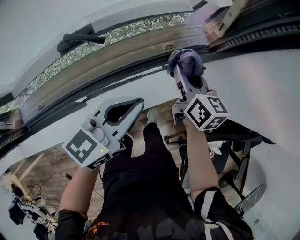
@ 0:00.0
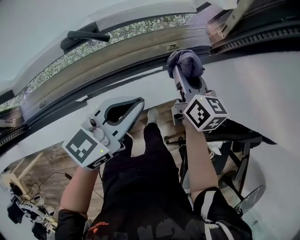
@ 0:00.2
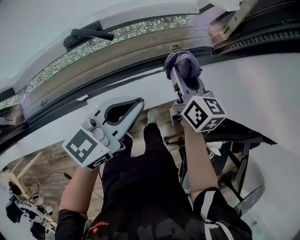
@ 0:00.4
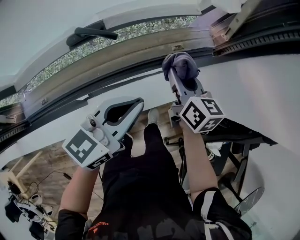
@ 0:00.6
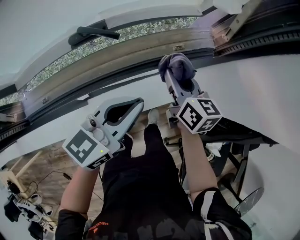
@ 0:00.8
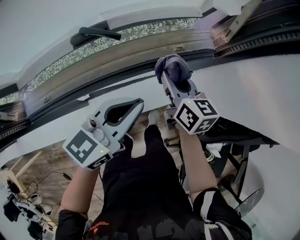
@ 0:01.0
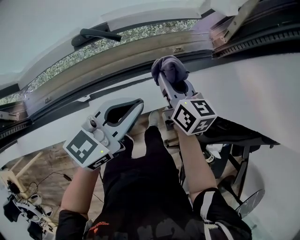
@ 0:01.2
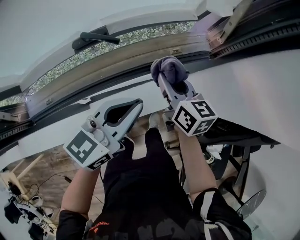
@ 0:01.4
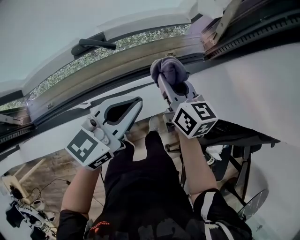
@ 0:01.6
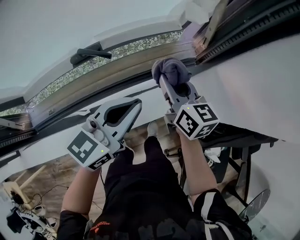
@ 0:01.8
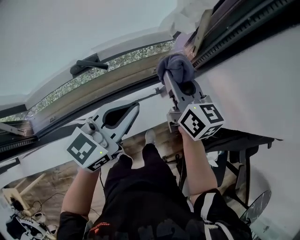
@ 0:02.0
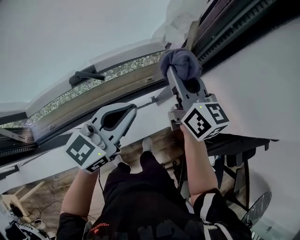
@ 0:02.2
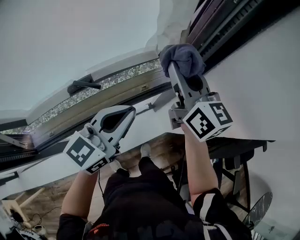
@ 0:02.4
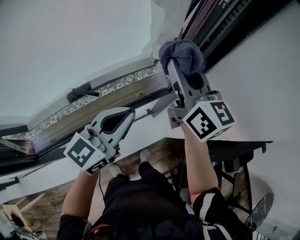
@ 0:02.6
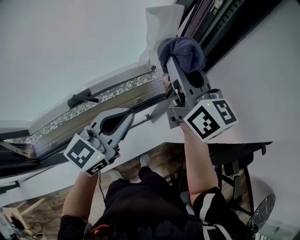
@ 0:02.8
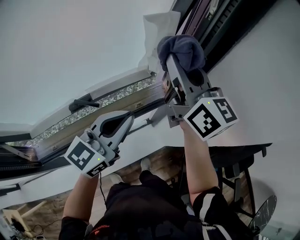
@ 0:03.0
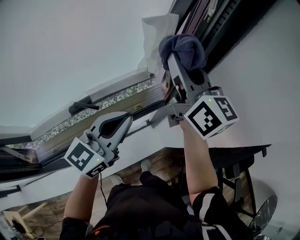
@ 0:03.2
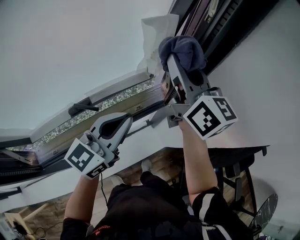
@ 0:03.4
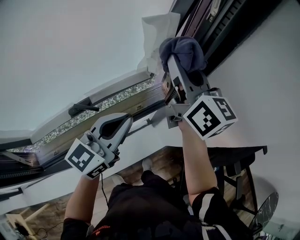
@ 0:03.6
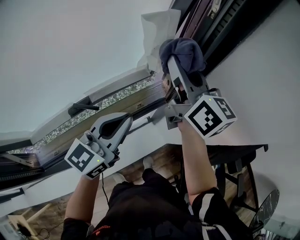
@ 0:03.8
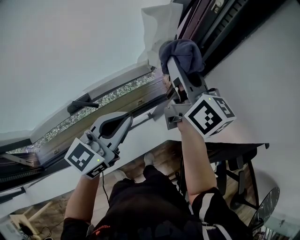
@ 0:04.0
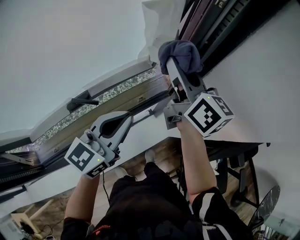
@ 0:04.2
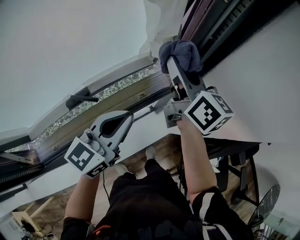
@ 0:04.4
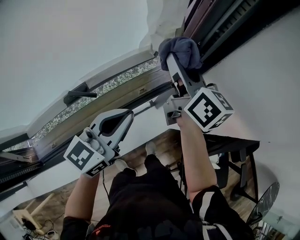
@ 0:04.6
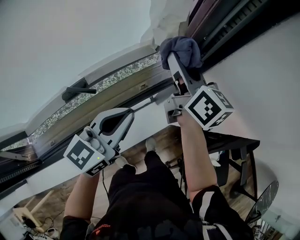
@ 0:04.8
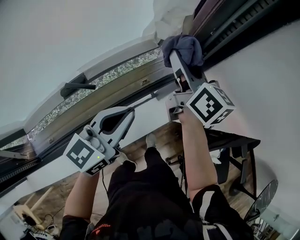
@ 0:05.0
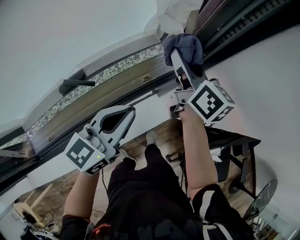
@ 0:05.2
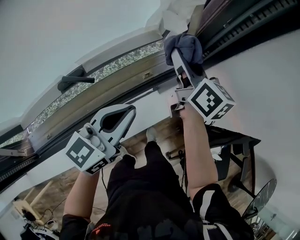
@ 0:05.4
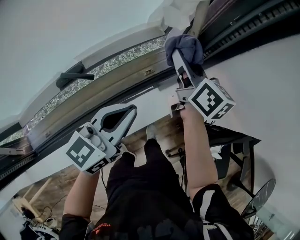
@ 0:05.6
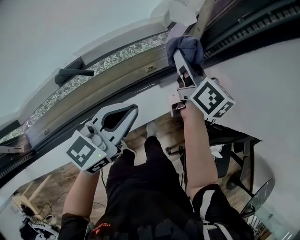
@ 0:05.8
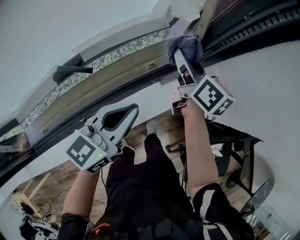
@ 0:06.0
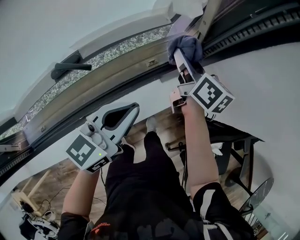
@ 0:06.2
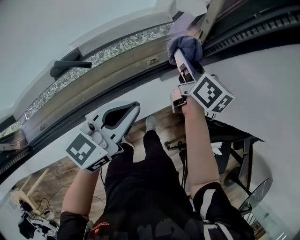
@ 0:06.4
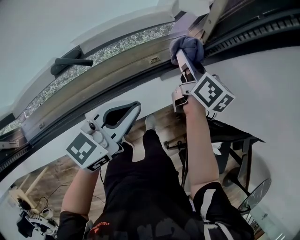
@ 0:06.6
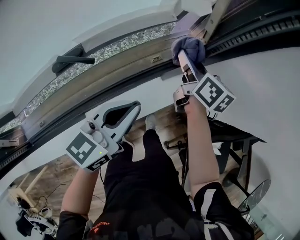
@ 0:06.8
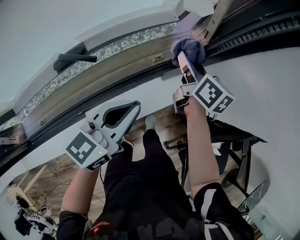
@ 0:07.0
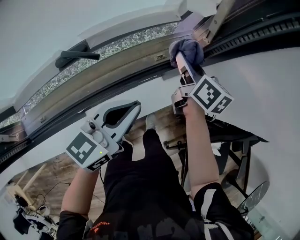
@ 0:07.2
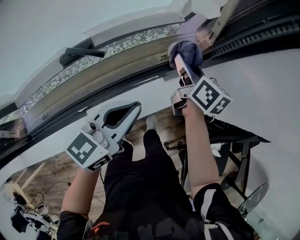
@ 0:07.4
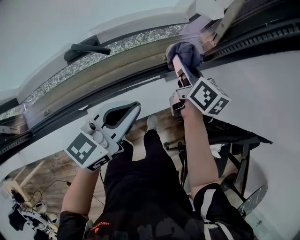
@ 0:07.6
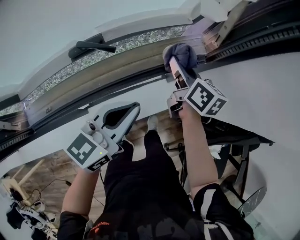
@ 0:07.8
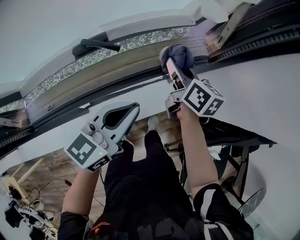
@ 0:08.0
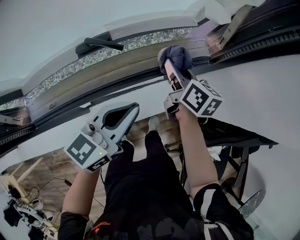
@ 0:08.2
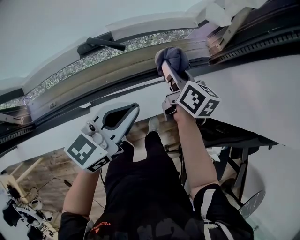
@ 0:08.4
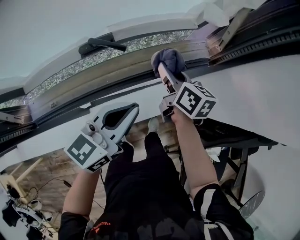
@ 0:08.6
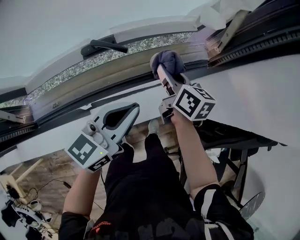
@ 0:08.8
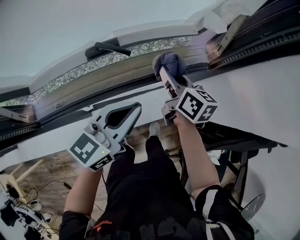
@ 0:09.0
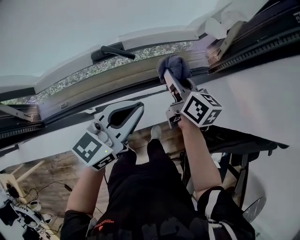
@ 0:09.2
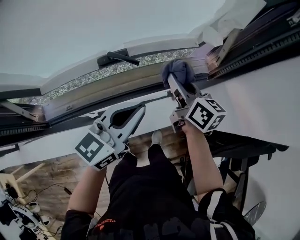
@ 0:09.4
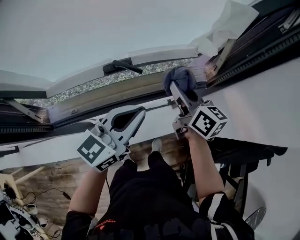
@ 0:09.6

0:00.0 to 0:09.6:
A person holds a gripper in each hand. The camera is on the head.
0:00.0 to 0:01.6: The right gripper moves to the left, about 5 cm.
0:01.6 to 0:03.2: The right gripper goes approximately 30 cm upward, and rotates about 30 degrees. Meanwhile the left gripper travels upward and forward by some 15 cm.
0:03.2 to 0:04.8: The left gripper travels downward by approximately 10 cm; the right gripper travels downward by some 15 cm, and rotates approximately 20 degrees.
0:04.8 to 0:06.4: The left gripper travels downward by some 10 cm; the right gripper travels downward by roughly 20 cm.
0:06.4 to 0:08.0: The right gripper heads to the left and backward, covering roughly 10 cm. The left gripper shifts about 10 cm backward and to the left.
0:08.0 to 0:09.6: The right gripper travels upward and to the left by about 15 cm; the left gripper shifts some 10 cm upward.

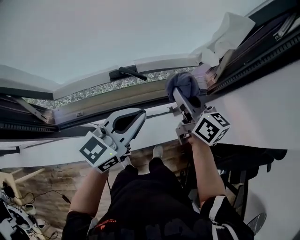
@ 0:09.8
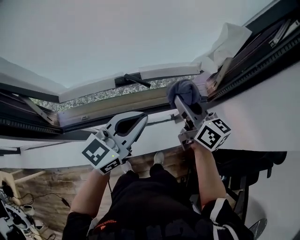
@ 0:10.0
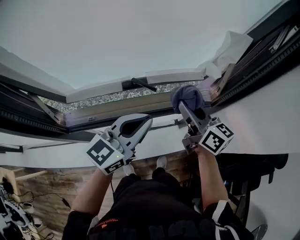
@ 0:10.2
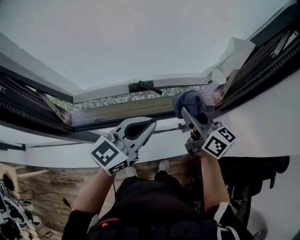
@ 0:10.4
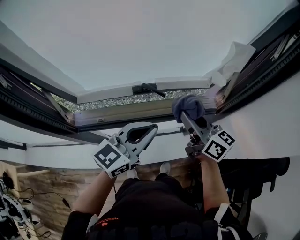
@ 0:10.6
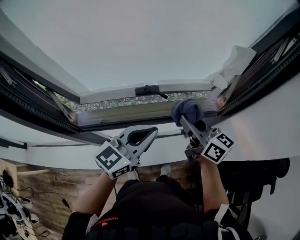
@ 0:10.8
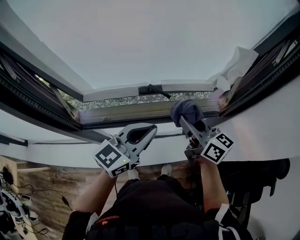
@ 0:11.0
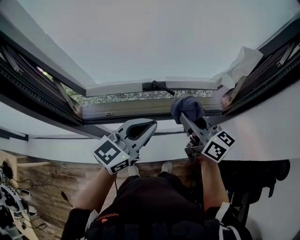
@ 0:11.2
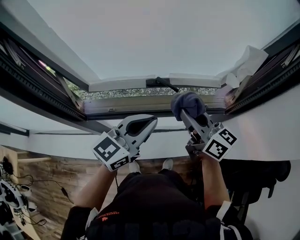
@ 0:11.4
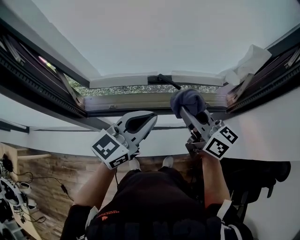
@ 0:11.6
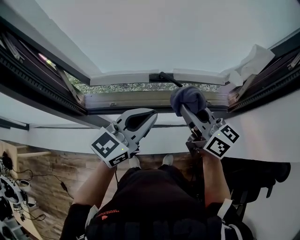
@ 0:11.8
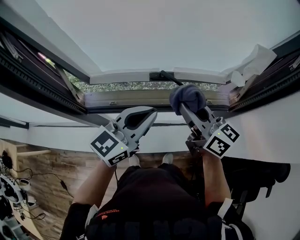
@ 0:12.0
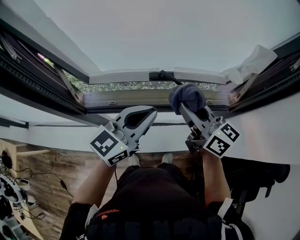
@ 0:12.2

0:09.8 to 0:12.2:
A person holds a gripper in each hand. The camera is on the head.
0:09.8 to 0:11.0: The left gripper ends up approximately 5 cm from where it was; the right gripper is displaced backward, to the left and upward by some 10 cm.
0:11.0 to 0:12.2: The right gripper travels to the left by approximately 5 cm.

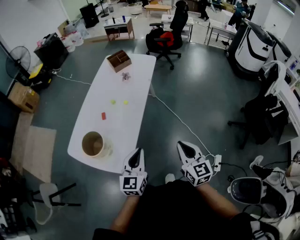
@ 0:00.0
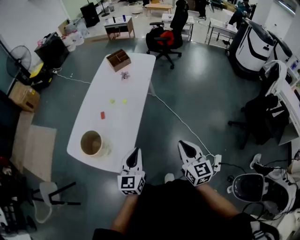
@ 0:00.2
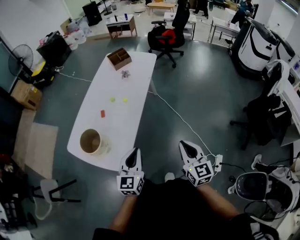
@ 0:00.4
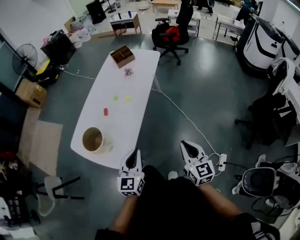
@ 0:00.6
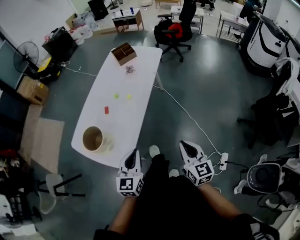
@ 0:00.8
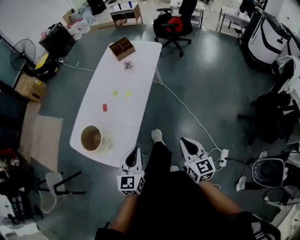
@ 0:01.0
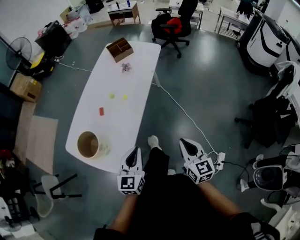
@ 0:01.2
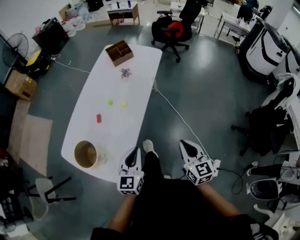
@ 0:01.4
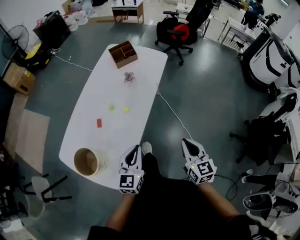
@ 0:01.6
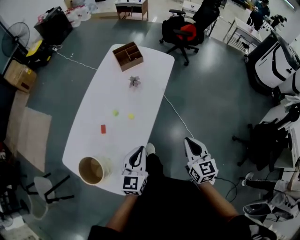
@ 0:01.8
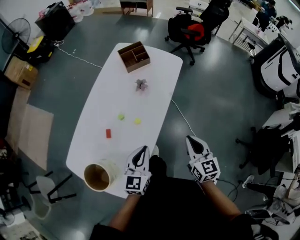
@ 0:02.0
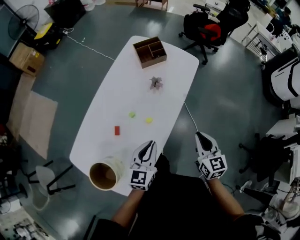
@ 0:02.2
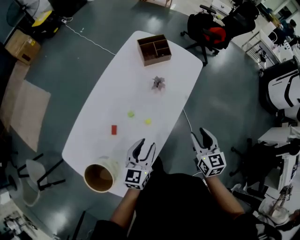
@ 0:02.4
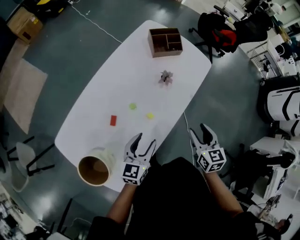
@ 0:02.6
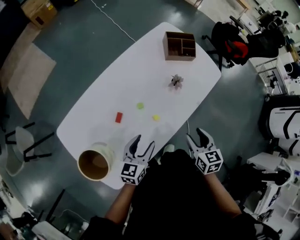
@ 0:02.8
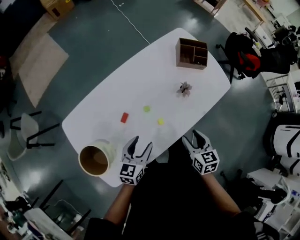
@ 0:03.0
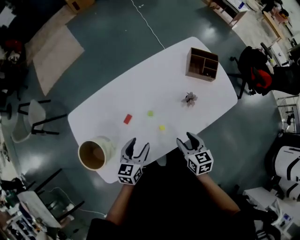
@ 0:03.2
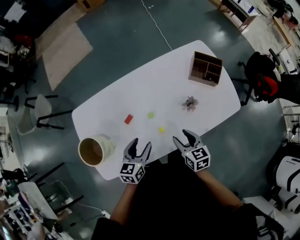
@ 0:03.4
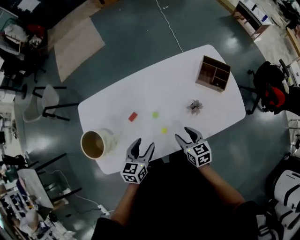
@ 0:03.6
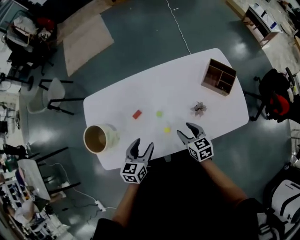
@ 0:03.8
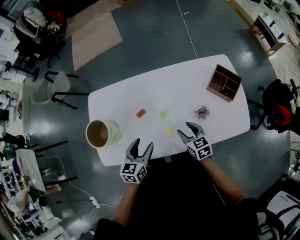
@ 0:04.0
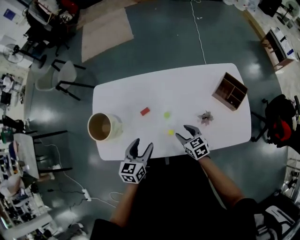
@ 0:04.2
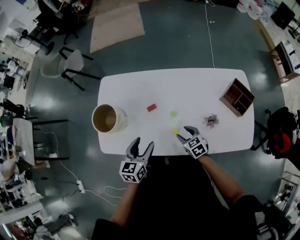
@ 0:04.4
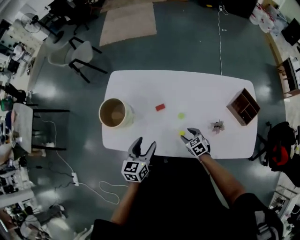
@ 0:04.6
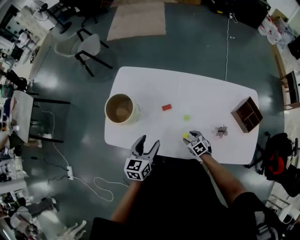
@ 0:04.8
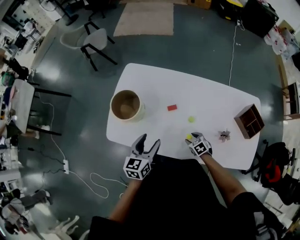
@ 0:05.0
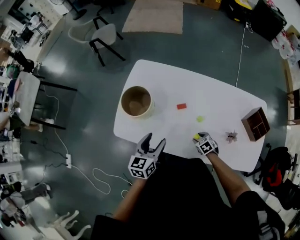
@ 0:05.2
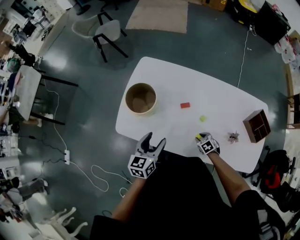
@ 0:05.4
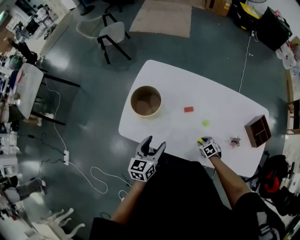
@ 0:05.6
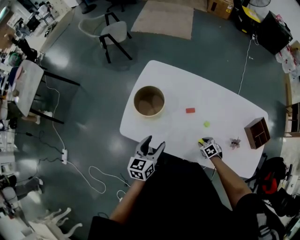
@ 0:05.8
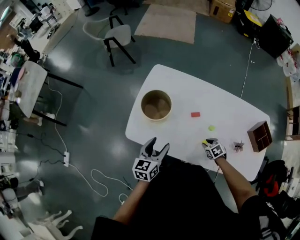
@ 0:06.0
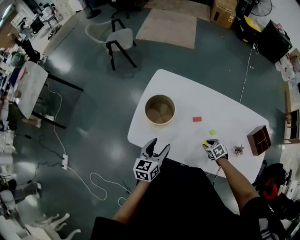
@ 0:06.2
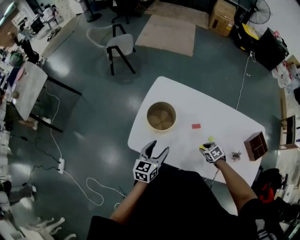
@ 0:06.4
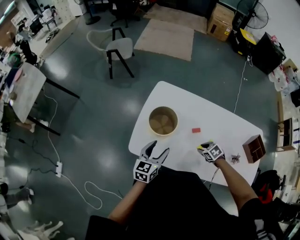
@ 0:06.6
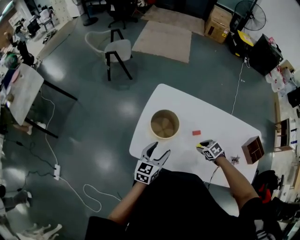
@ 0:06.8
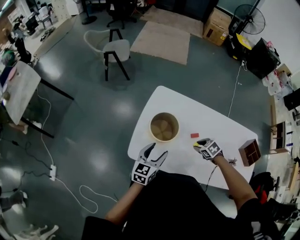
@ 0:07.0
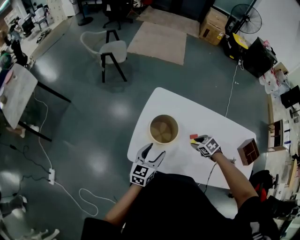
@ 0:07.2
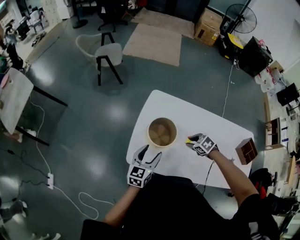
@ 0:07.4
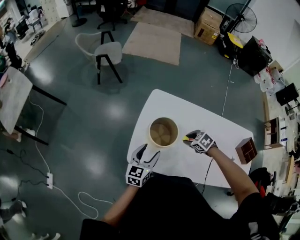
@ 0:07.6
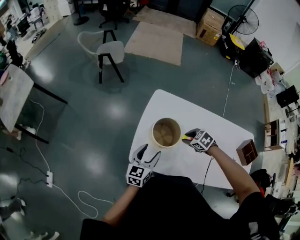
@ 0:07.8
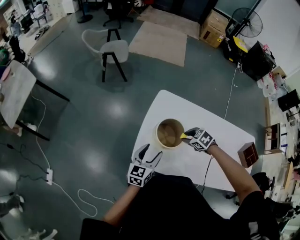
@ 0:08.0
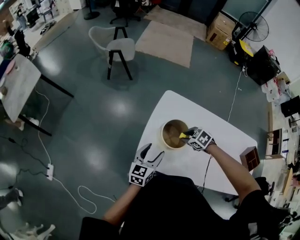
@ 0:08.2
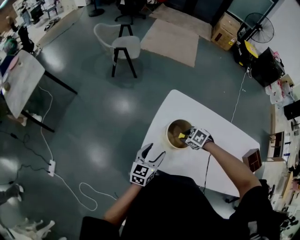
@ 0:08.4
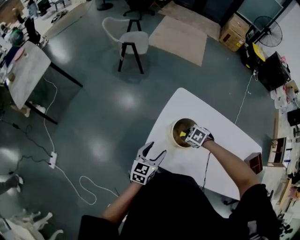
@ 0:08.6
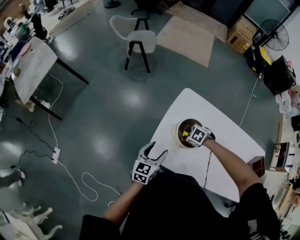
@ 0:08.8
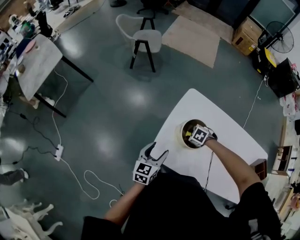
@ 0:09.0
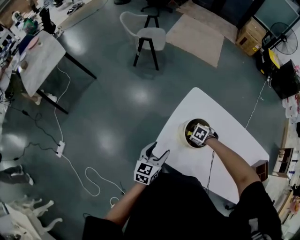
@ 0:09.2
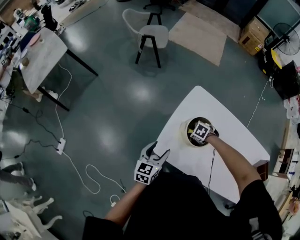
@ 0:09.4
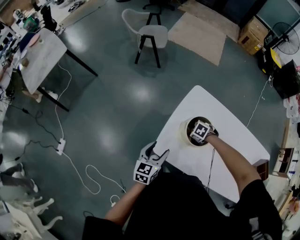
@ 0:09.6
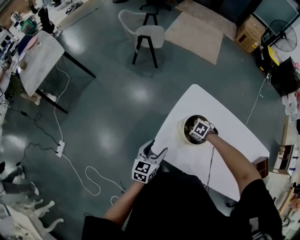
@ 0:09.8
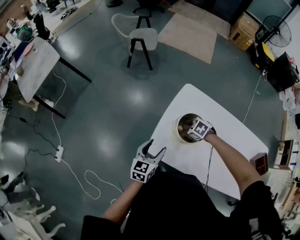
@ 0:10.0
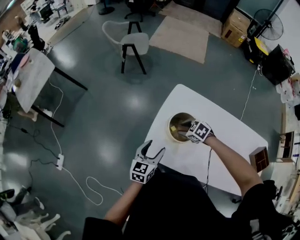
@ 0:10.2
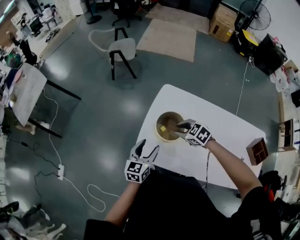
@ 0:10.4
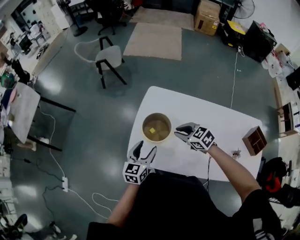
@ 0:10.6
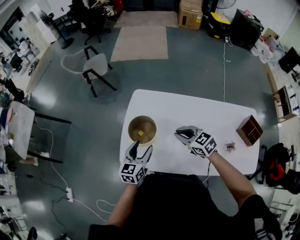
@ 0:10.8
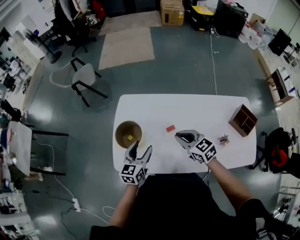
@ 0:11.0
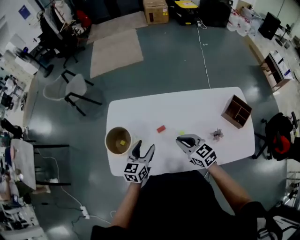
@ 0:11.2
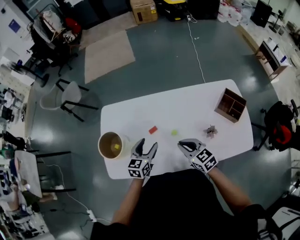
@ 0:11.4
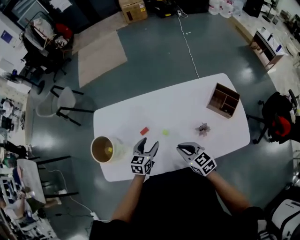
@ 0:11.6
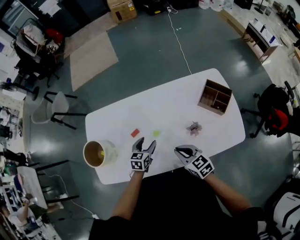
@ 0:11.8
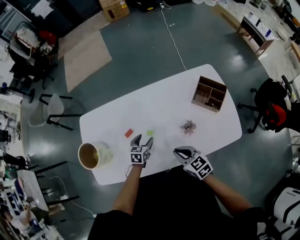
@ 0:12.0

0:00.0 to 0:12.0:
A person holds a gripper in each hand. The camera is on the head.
0:00.0 to 0:01.6: The two grippers go about 20 cm forward.
0:01.6 to 0:03.0: The right gripper moves about 35 cm, swivels about 40 degrees, and opens up, while the left gripper shifts by some 25 cm, changes its angle by roughly 30 degrees, and opens its fingers.
0:03.0 to 0:04.4: The left gripper shifts by some 5 cm, and changes its angle by about 50 degrees; the right gripper heads downward, covering some 10 cm, and turns by approximately 60 degrees.
0:04.4 to 0:06.0: The left gripper heads to the left, covering roughly 20 cm; the right gripper is displaced downward and to the left by about 10 cm, and rotates approximately 30 degrees.
0:06.0 to 0:07.6: The left gripper goes about 15 cm forward and to the left. The right gripper goes approximately 30 cm forward, to the left and upward.
0:07.6 to 0:09.0: The right gripper ends up roughly 15 cm from where it was, and rotates about 30 degrees; the left gripper shifts by some 10 cm.
0:09.0 to 0:10.4: The right gripper is displaced upward by approximately 15 cm, and changes its angle by roughly 30 degrees. The left gripper changes place by some 5 cm.
0:10.4 to 0:12.0: The two grippers travel together, approximately 50 cm. The right gripper changes its angle by approximately 60 degrees, and closes. The left gripper changes its angle by roughly 40 degrees.
